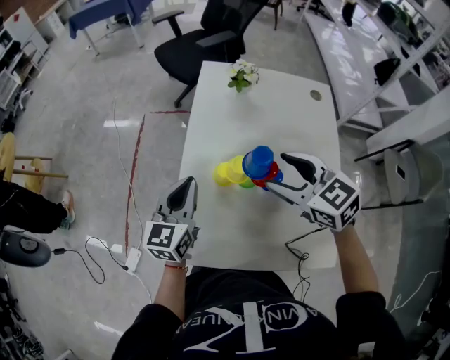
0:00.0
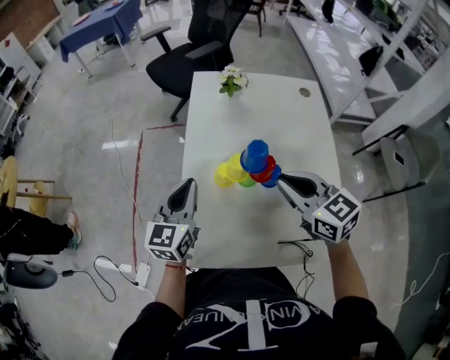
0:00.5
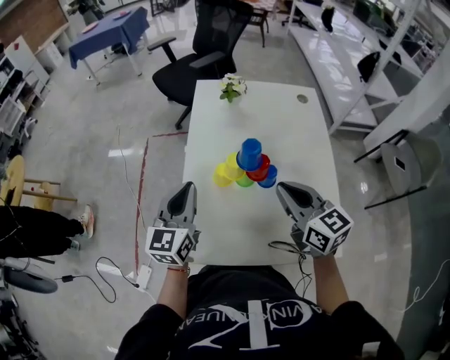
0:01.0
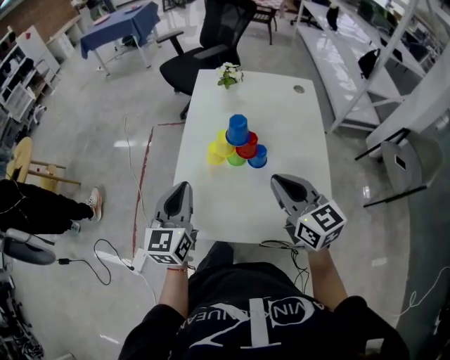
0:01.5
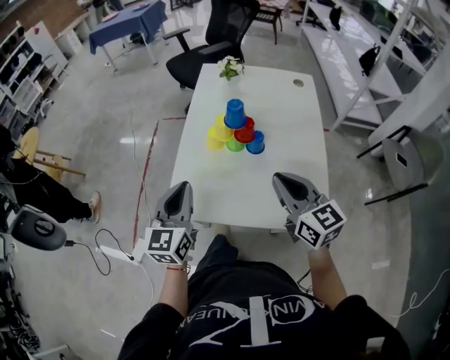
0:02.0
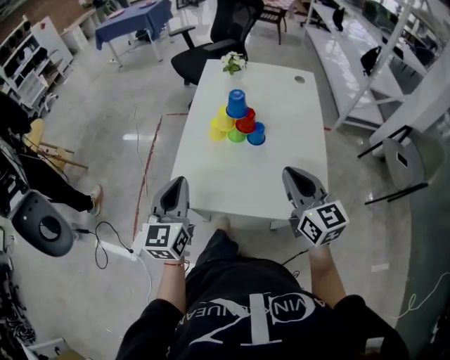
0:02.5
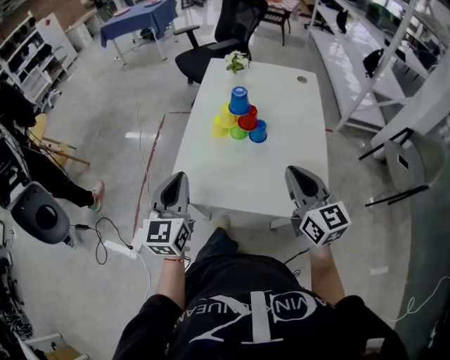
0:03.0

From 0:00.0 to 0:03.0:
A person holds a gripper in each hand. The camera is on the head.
From 0:00.0 to 0:01.5: The two grippers go some 15 cm backward. The right gripper rotates some 30 degrees, and closes up.
From 0:01.5 to 0:03.0: The two grippers go approximately 10 cm backward.

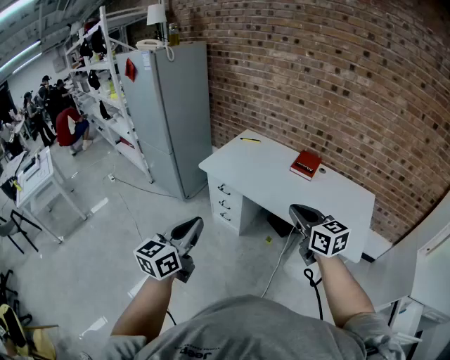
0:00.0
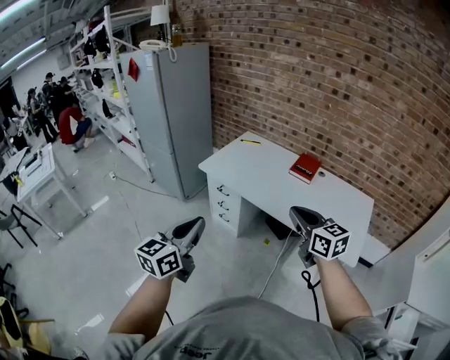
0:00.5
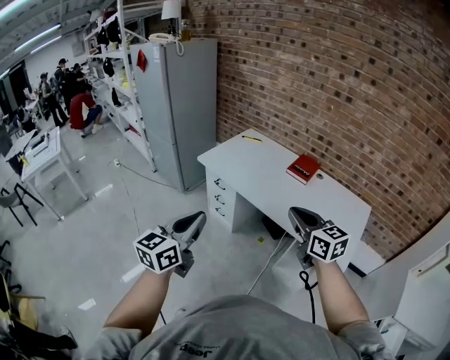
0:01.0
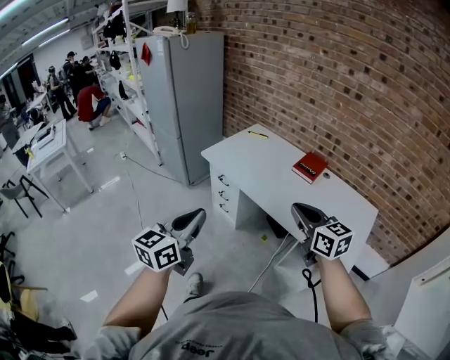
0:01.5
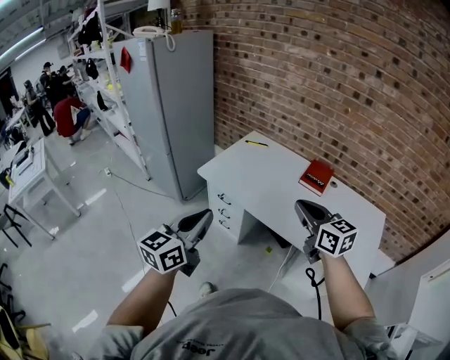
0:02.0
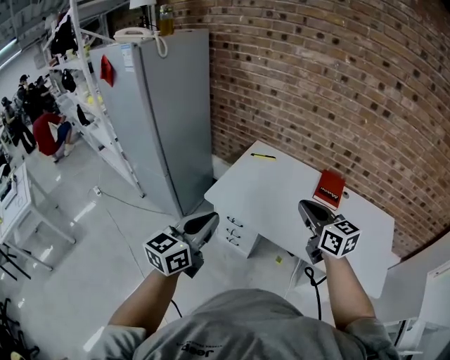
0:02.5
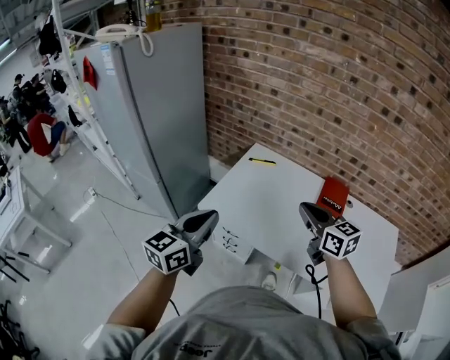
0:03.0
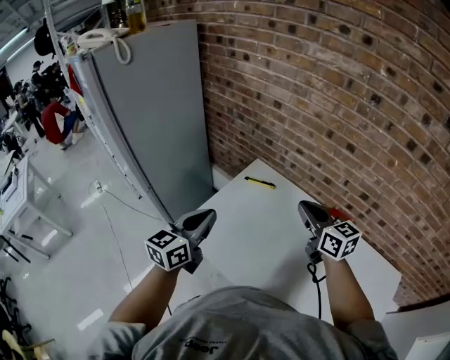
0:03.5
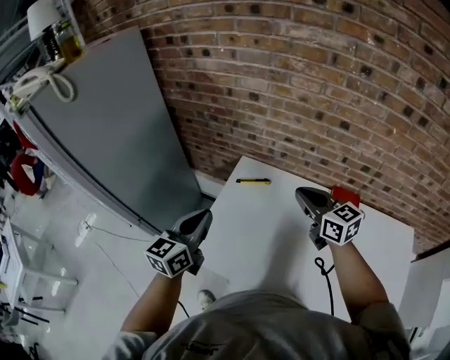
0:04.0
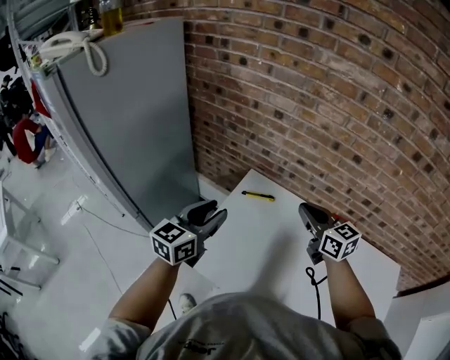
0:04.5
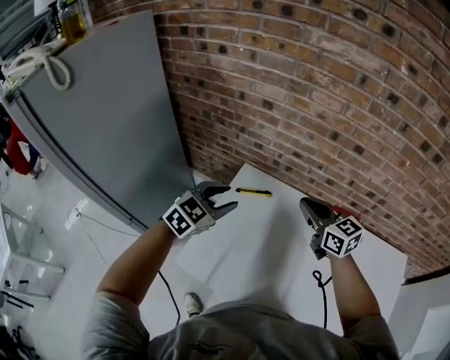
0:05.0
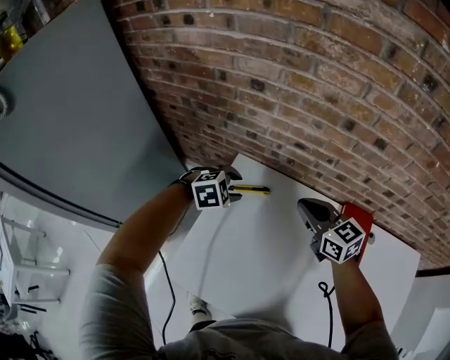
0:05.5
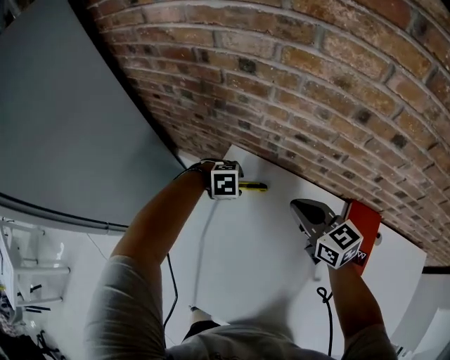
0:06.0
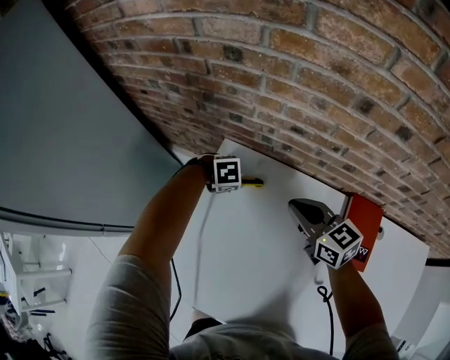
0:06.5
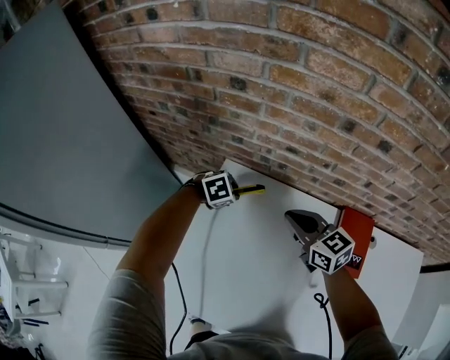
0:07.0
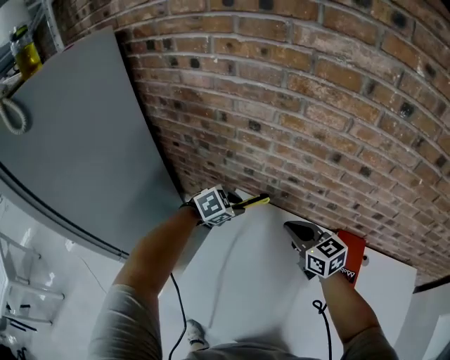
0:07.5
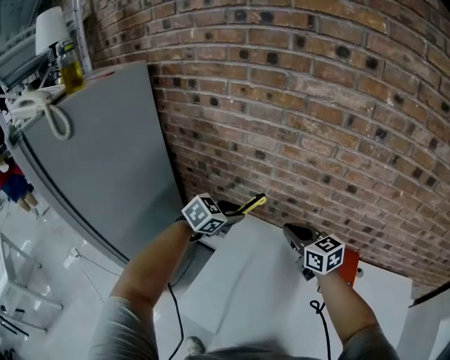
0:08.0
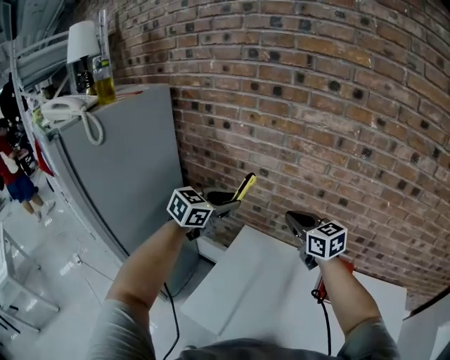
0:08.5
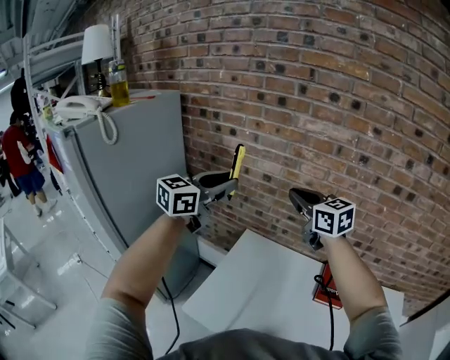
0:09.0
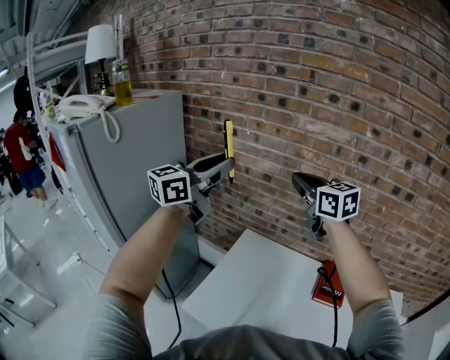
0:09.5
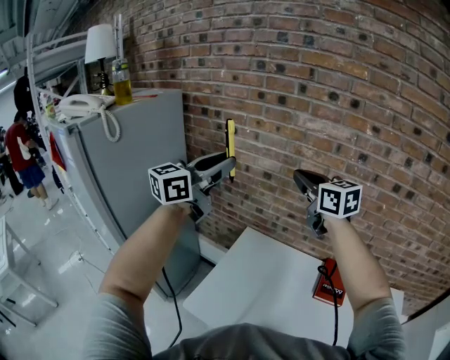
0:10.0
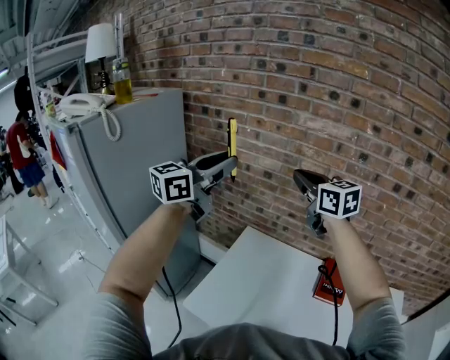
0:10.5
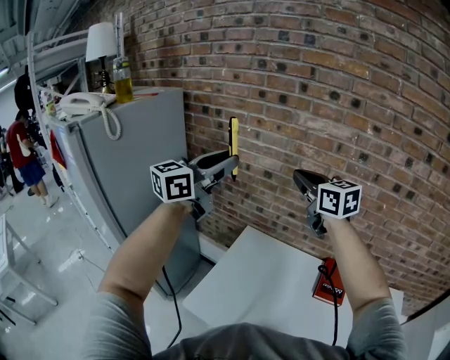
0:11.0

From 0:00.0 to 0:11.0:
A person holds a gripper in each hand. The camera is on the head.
From 0:00.0 to 0:02.0: The grippers both shift forward by approximately 15 cm.
From 0:02.0 to 0:03.5: The pair of grippers is taken forward, roughly 50 cm.
From 0:03.5 to 0:05.5: The right gripper is displaced forward and downward by about 25 cm, while the left gripper heads forward and downward, covering about 40 cm, points its fingers about 50 degrees further downward, and opens up.
From 0:05.5 to 0:07.5: The right gripper moves some 10 cm downward and comes back. Meanwhile the left gripper moves about 15 cm downward and comes back, and closes its fingers.
From 0:07.5 to 0:09.0: Both grippers travel together upward, approximately 35 cm. The left gripper tilts its fingers some 50 degrees upward.
From 0:09.0 to 0:11.0: The two grippers go about 5 cm upward.

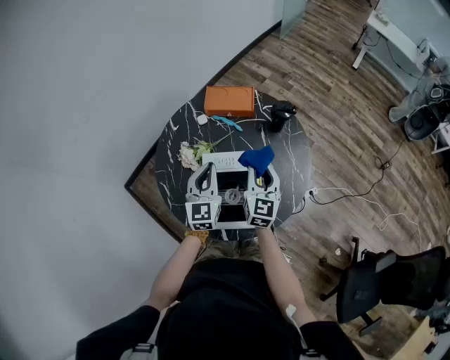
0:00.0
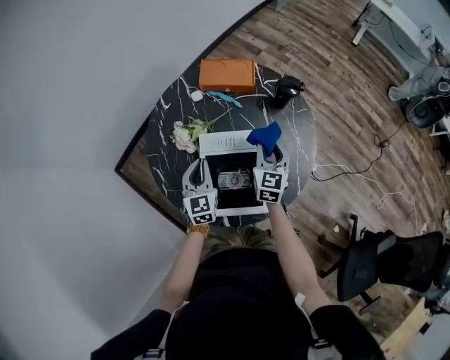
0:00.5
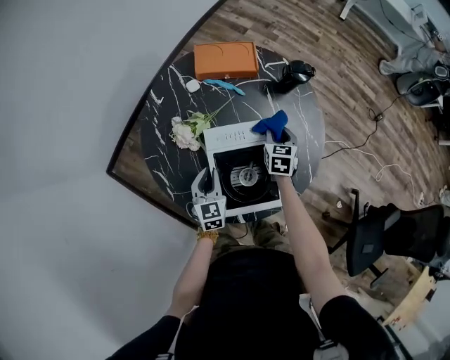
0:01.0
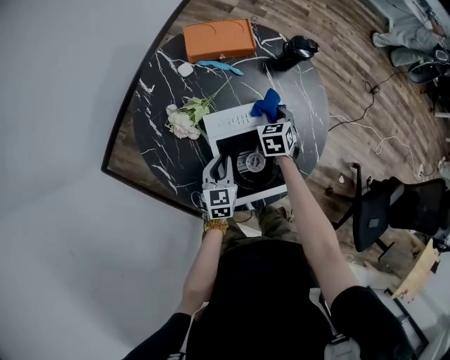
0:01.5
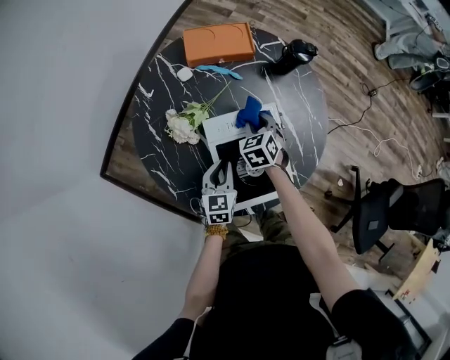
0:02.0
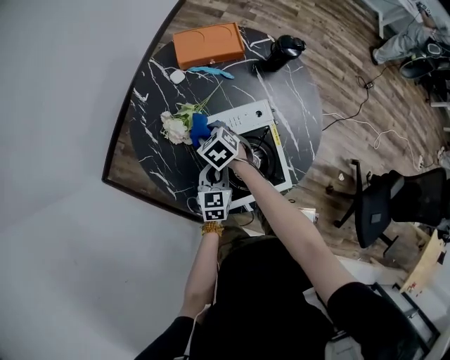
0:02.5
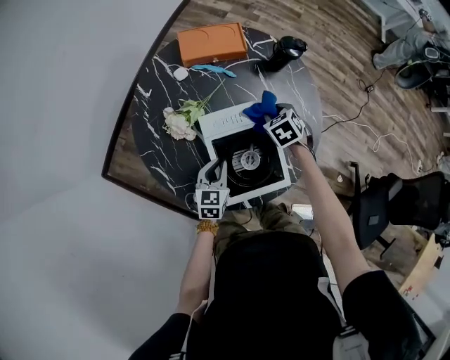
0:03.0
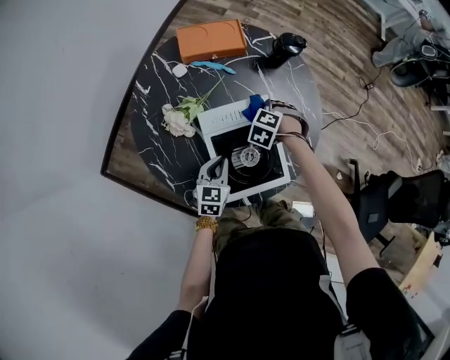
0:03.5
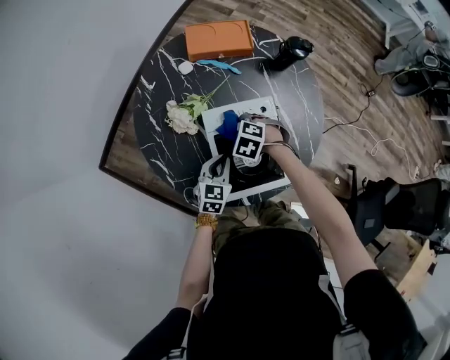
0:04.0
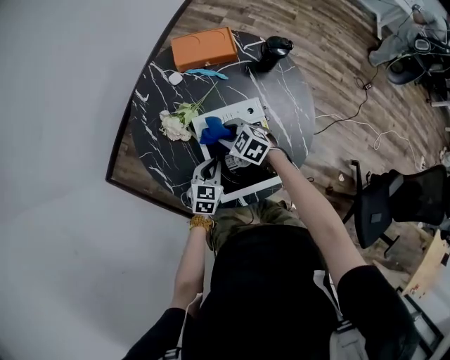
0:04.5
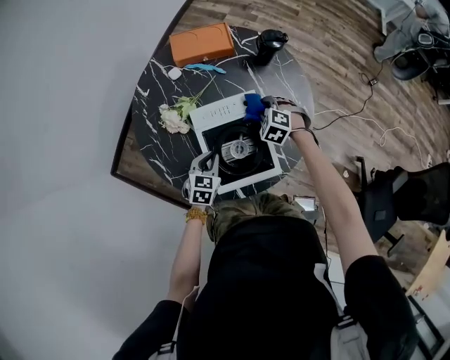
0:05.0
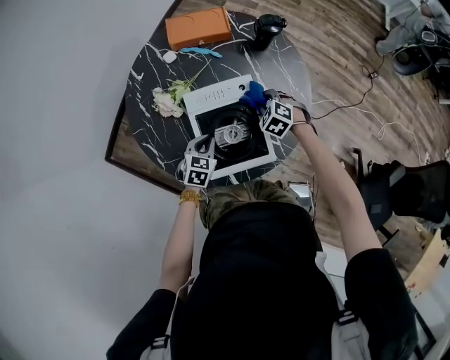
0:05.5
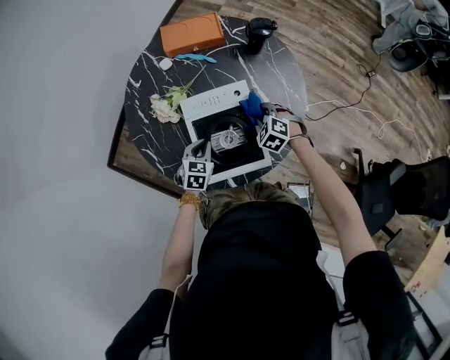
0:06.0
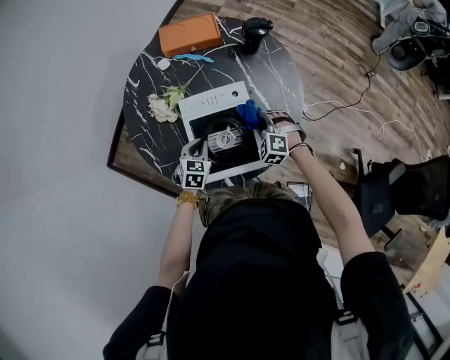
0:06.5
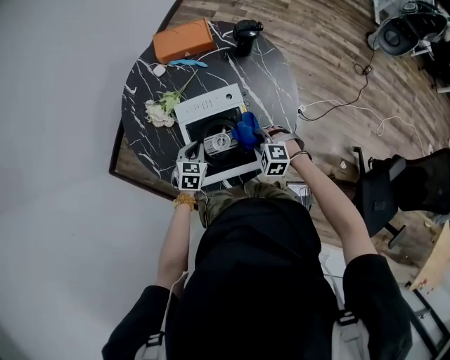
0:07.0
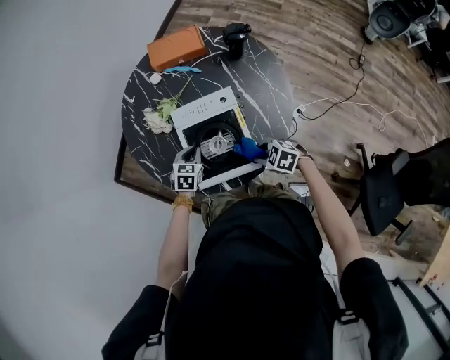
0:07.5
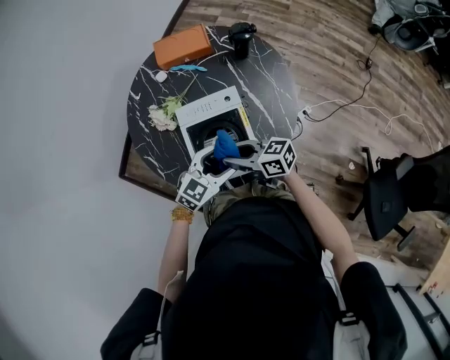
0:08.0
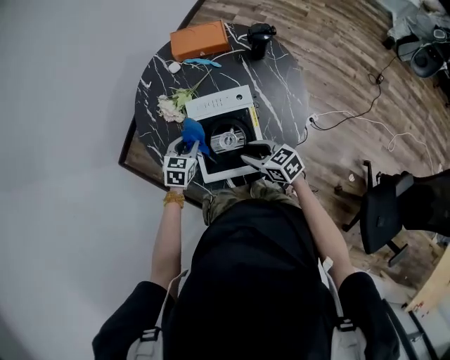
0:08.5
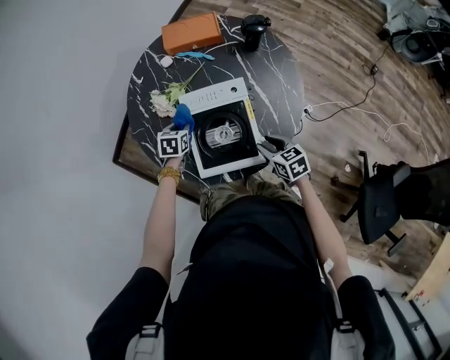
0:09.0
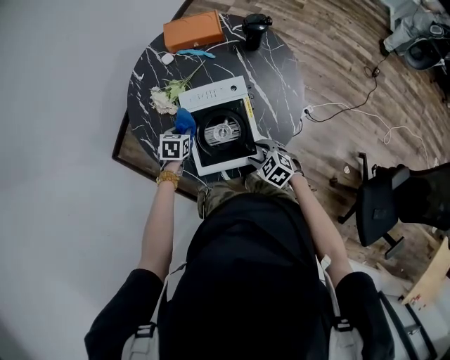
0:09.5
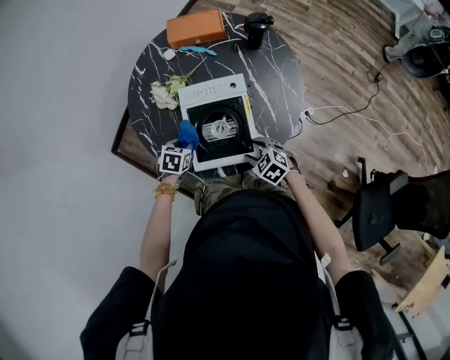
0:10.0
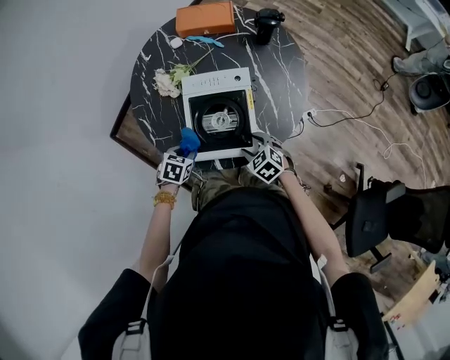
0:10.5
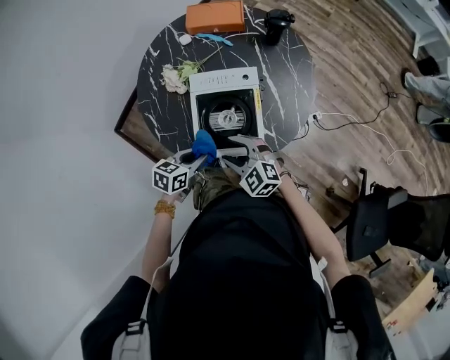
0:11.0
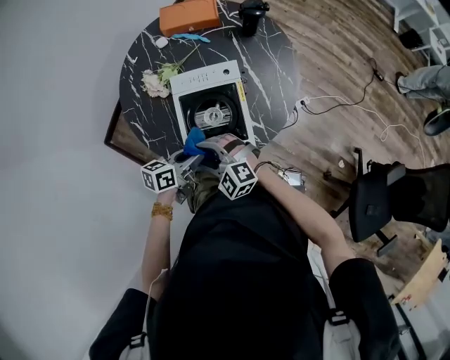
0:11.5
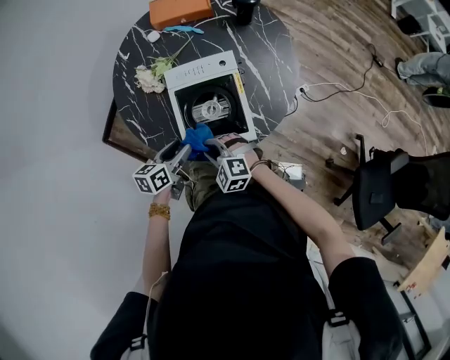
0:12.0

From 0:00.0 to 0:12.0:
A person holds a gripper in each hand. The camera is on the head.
From 0:00.0 to 0:02.0: The right gripper shifts about 25 cm downward and to the left, and tips its fingers downward by approximately 40 degrees; the left gripper is displaced downward by approximately 20 cm, and swivels roughly 30 degrees.
From 0:02.0 to 0:04.0: The right gripper turns by some 50 degrees.
From 0:04.0 to 0:06.0: The right gripper moves approximately 15 cm.
From 0:06.0 to 0:08.0: Both grippers travel together upward, some 15 cm. The left gripper changes its angle by approximately 40 degrees, and opens its fingers; the right gripper angles its fingers upward, by approximately 50 degrees.
From 0:08.0 to 0:10.0: The right gripper is displaced downward by approximately 15 cm, tips its fingers downward by about 40 degrees, and opens up. Meanwhile the left gripper ends up some 20 cm from where it was, points its fingers about 40 degrees further downward, and closes up.
From 0:10.0 to 0:12.0: The left gripper heads upward and backward, covering roughly 10 cm, changes its angle by about 40 degrees, and opens. The right gripper shifts approximately 15 cm to the left, rotates about 30 degrees, and closes its fingers.
